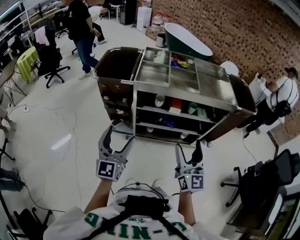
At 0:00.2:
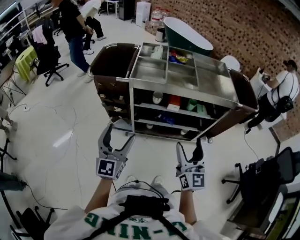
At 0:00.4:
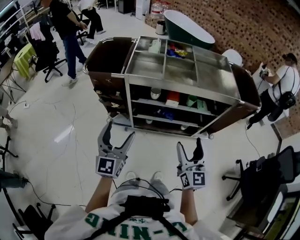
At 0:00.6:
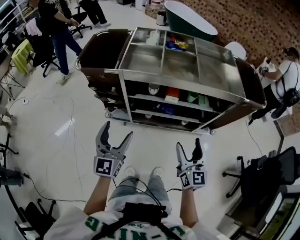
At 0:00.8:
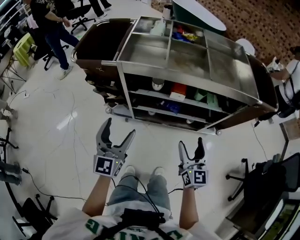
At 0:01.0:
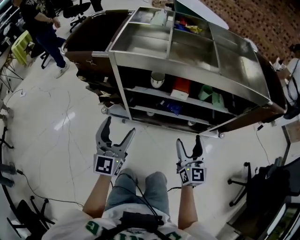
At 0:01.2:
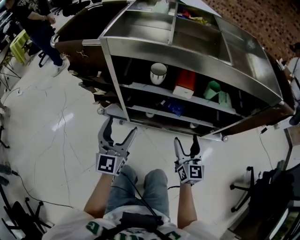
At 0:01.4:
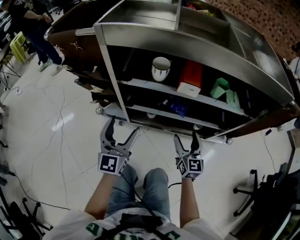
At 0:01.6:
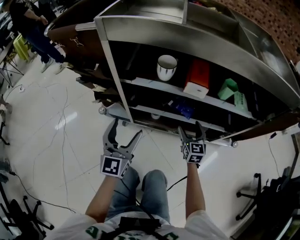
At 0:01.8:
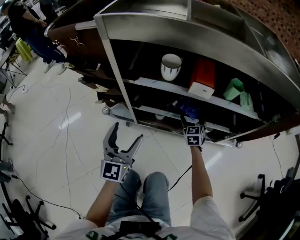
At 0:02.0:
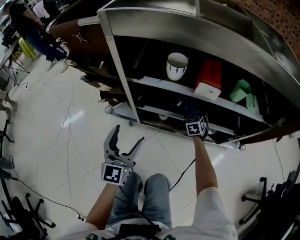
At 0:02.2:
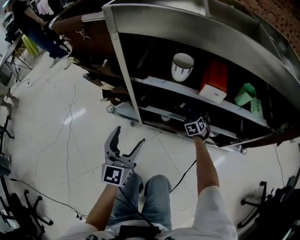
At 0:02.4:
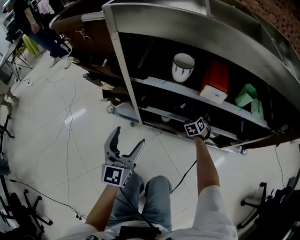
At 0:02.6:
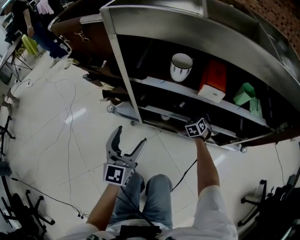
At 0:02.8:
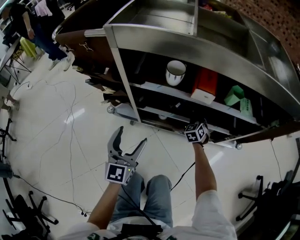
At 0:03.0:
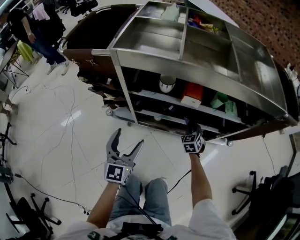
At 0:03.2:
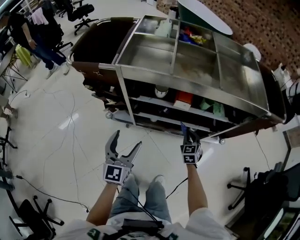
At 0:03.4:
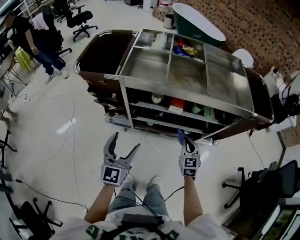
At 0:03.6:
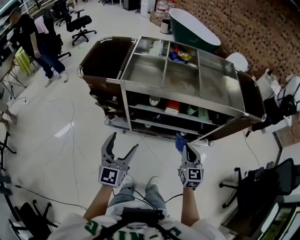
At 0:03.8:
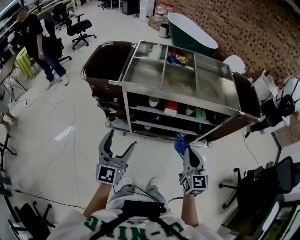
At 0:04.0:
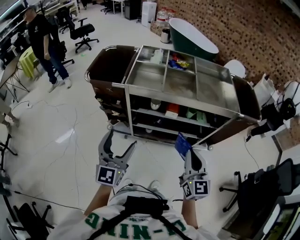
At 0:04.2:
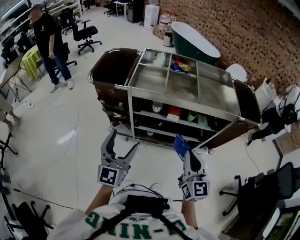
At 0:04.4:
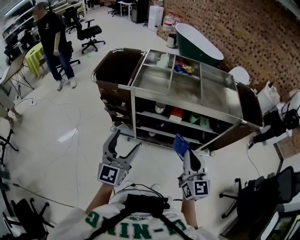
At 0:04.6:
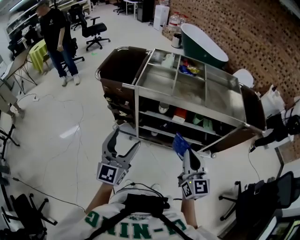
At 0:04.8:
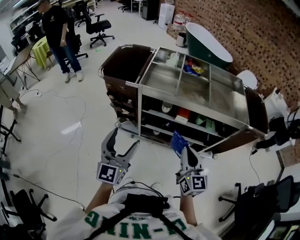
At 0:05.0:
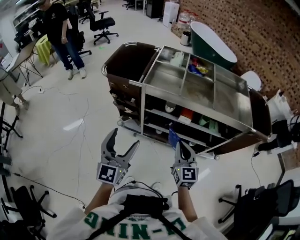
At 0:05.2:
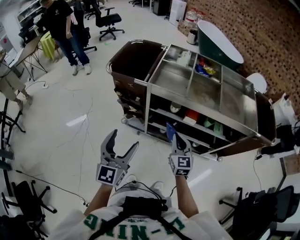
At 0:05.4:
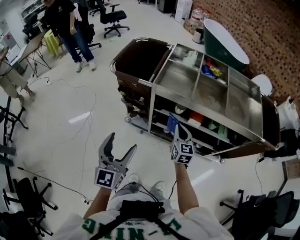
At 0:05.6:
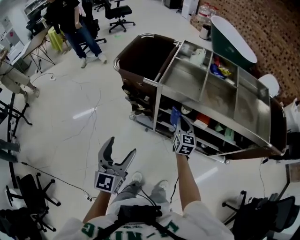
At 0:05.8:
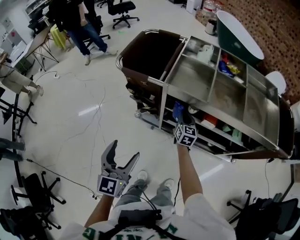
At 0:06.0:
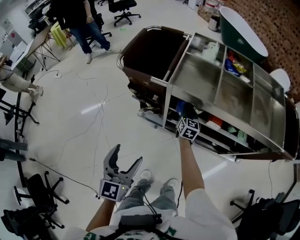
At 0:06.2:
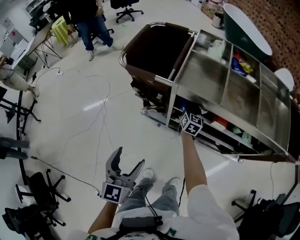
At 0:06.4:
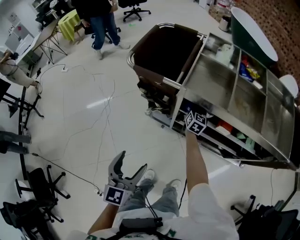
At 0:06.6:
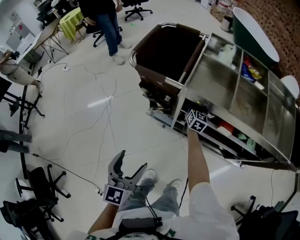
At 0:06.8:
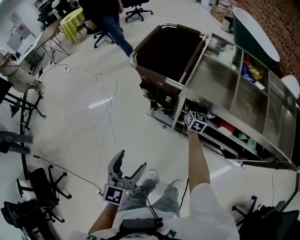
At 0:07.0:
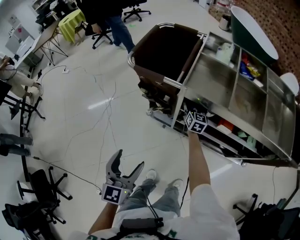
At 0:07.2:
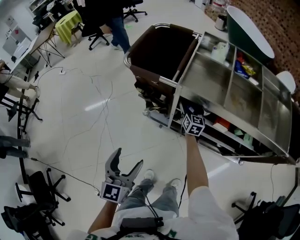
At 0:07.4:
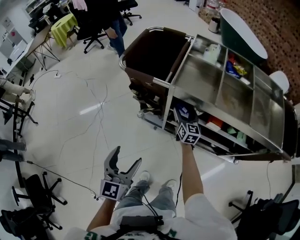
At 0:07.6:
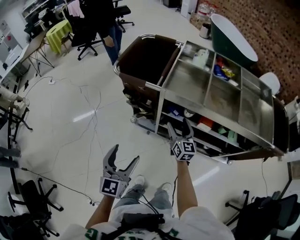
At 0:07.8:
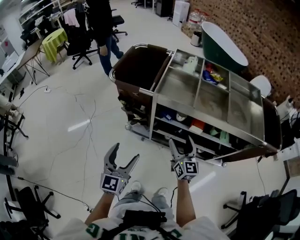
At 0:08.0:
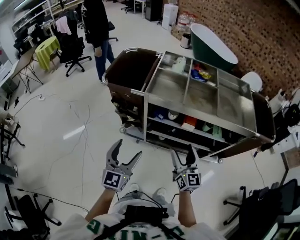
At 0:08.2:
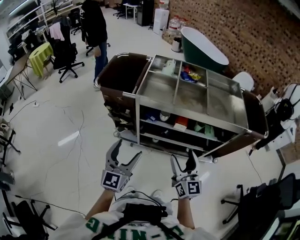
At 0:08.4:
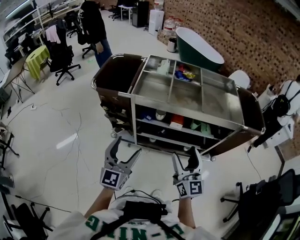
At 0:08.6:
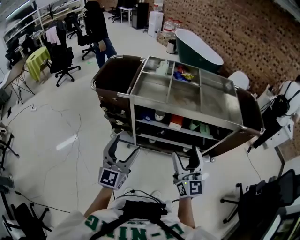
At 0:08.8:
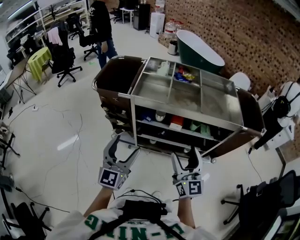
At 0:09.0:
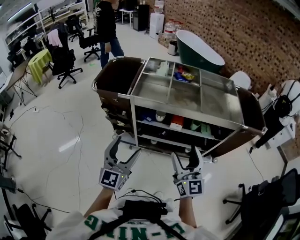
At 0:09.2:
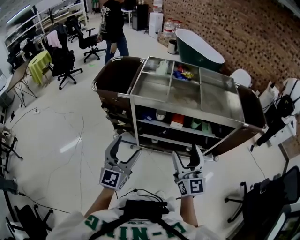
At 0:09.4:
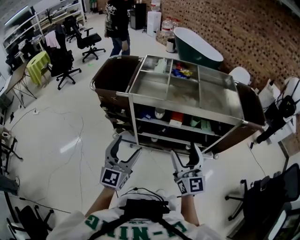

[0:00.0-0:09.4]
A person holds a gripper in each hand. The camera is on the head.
0:00.0 to 0:01.6: Both grippers move downward and forward, roughly 50 cm. The right gripper turns by roughly 30 degrees.
0:01.6 to 0:03.2: The grippers both shift upward by about 15 cm. The right gripper changes its angle by roughly 20 degrees, and closes its fingers.
0:03.2 to 0:04.8: The left gripper moves upward and backward, some 20 cm; the right gripper heads upward and backward, covering some 40 cm, and tips its fingers upward by approximately 30 degrees.
0:04.8 to 0:06.2: The left gripper moves downward and to the left, approximately 10 cm, and turns by about 20 degrees. Meanwhile the right gripper moves forward and downward, some 50 cm.
0:06.2 to 0:07.8: The right gripper is displaced backward and upward by about 25 cm, and opens up.
0:07.8 to 0:09.4: The right gripper travels upward, backward and to the right by roughly 20 cm. Meanwhile the left gripper is displaced to the right and upward by approximately 15 cm.

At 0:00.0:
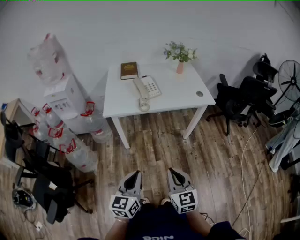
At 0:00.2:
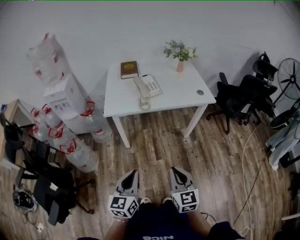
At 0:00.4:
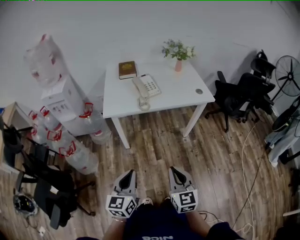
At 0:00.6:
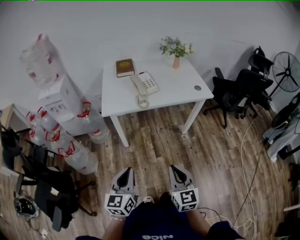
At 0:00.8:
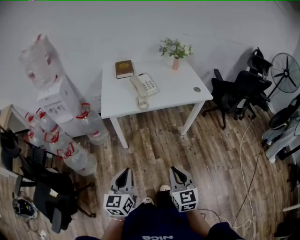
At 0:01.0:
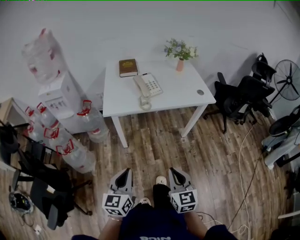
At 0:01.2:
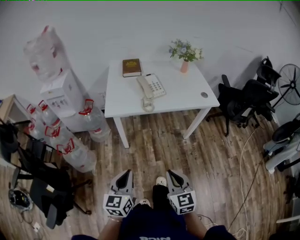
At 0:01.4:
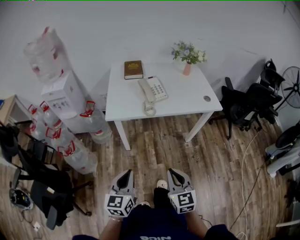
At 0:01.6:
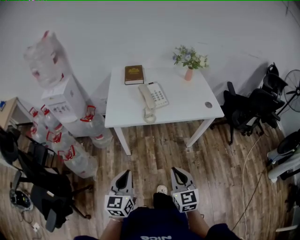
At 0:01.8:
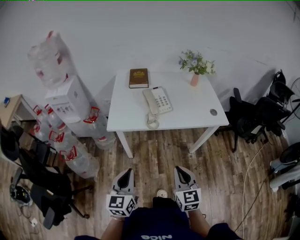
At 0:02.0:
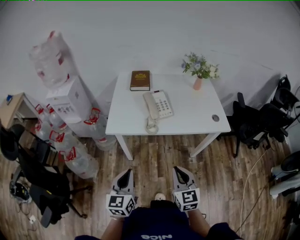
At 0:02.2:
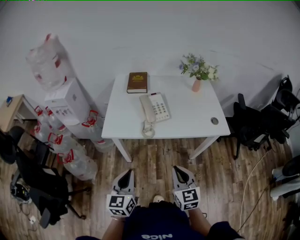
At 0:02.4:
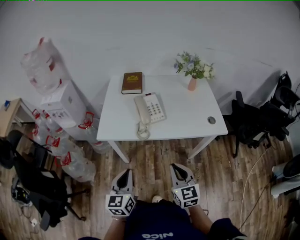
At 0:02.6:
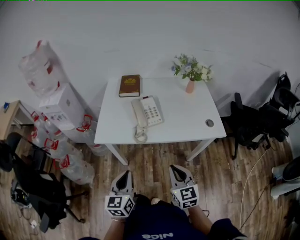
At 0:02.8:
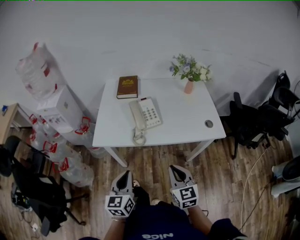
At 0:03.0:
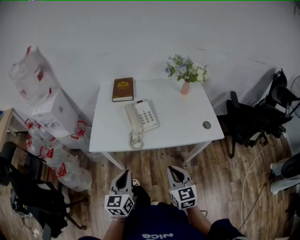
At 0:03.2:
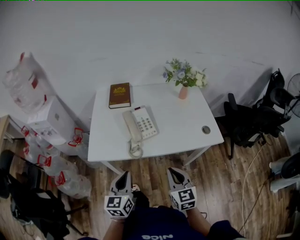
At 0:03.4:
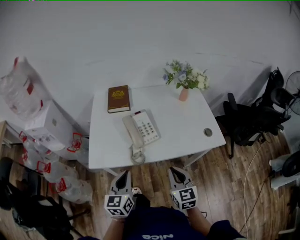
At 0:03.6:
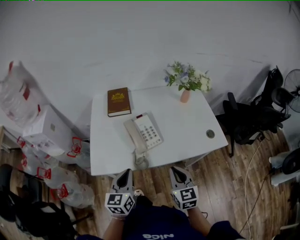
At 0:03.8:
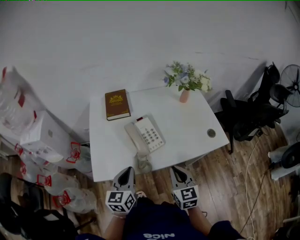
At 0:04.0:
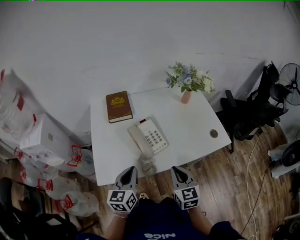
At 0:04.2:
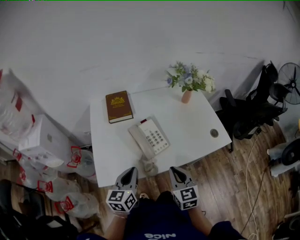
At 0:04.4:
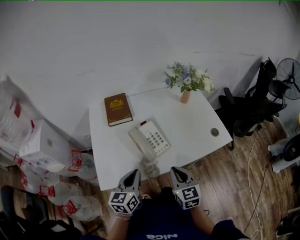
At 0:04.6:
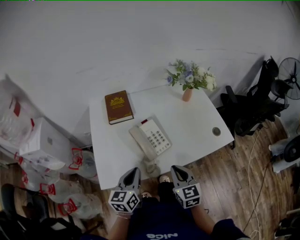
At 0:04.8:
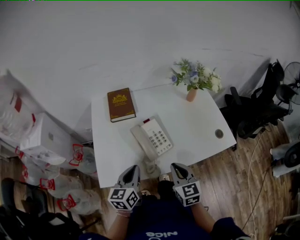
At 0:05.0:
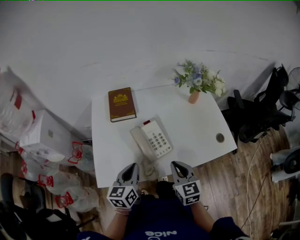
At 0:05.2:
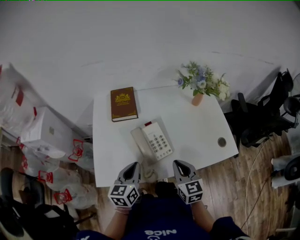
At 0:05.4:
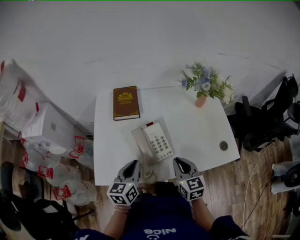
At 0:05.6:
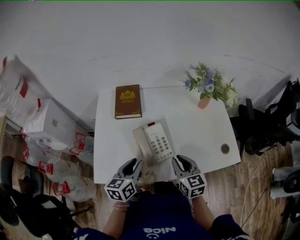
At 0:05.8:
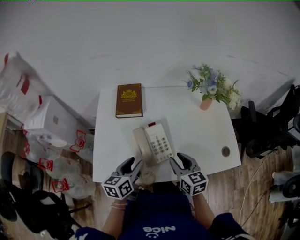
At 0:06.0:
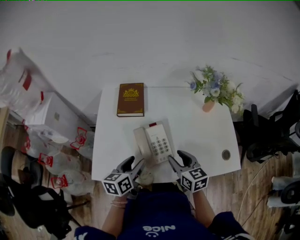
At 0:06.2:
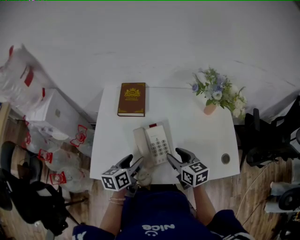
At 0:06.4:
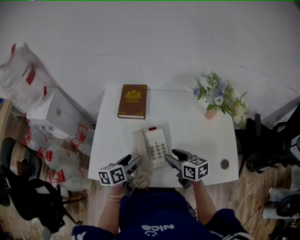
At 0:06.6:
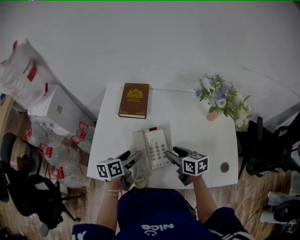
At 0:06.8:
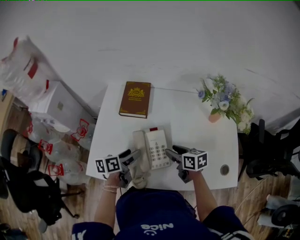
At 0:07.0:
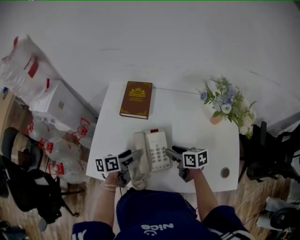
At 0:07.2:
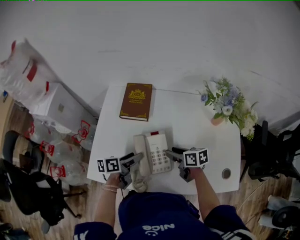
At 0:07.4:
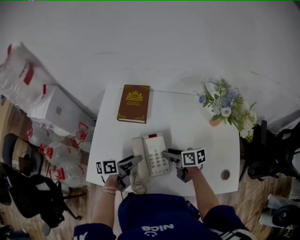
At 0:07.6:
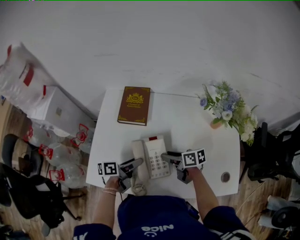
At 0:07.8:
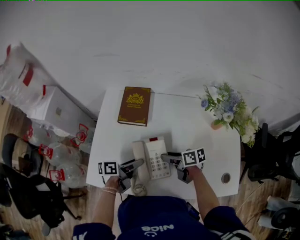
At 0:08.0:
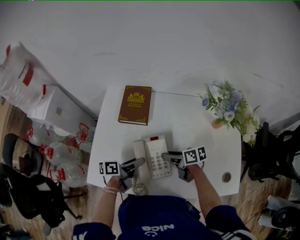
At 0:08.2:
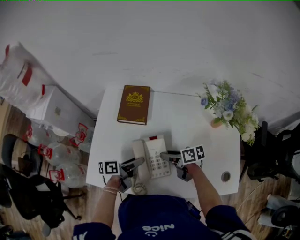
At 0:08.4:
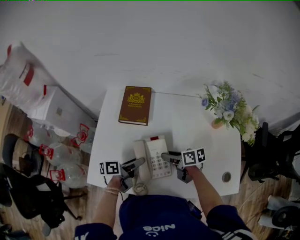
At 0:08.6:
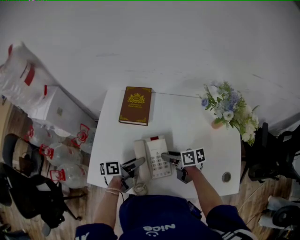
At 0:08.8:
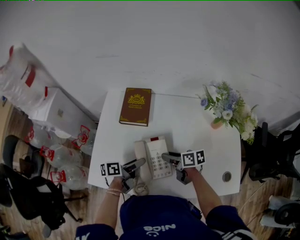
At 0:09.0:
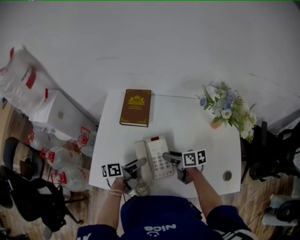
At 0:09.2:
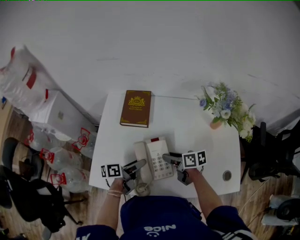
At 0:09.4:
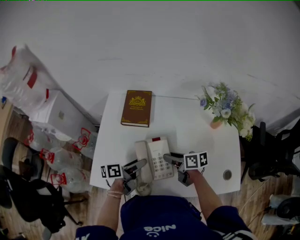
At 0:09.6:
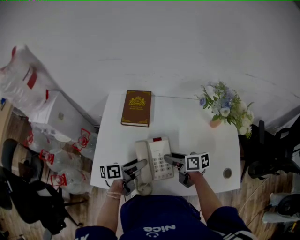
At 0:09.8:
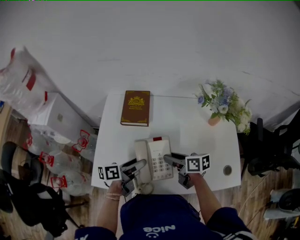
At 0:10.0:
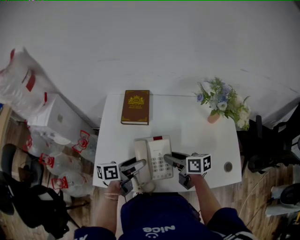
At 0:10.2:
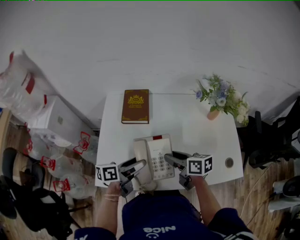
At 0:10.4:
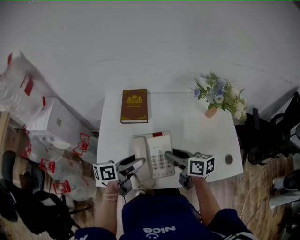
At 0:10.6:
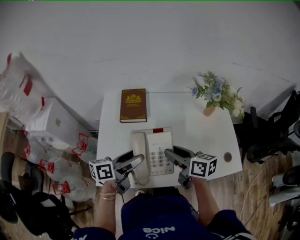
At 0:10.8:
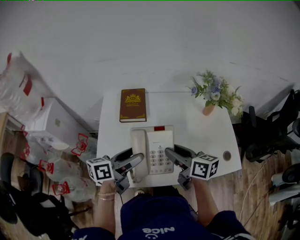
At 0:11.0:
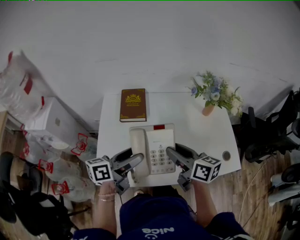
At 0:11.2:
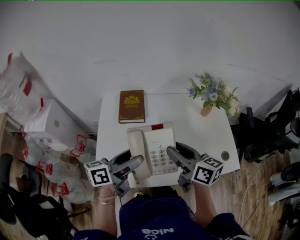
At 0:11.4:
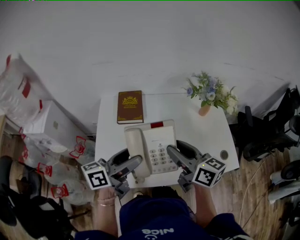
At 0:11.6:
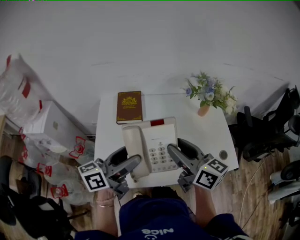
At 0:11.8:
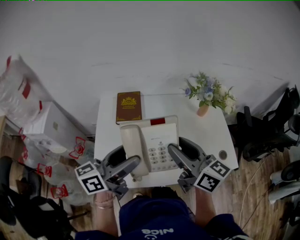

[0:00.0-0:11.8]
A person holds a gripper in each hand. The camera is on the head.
0:00.0 to 0:01.4: The left gripper moves forward and to the left, approximately 10 cm. Meanwhile the right gripper shifts roughly 5 cm forward.
0:01.4 to 0:03.0: Both grippers travel together forward and to the right, approximately 25 cm.
0:03.0 to 0:04.4: The right gripper travels forward and to the left by approximately 15 cm. Meanwhile the left gripper travels forward by some 20 cm, and rotates about 20 degrees.
0:04.4 to 0:06.0: The left gripper shifts roughly 10 cm forward, and opens its fingers. Meanwhile the right gripper moves forward, some 15 cm, rotates roughly 30 degrees, and opens.
0:06.0 to 0:07.4: Both grippers travel together forward and downward, approximately 10 cm. The left gripper swivels roughly 30 degrees. The right gripper changes its angle by roughly 40 degrees.
0:07.4 to 0:08.8: There are only small adjustments of the grippers.
0:08.8 to 0:10.4: The left gripper is displaced upward by roughly 10 cm. Meanwhile the right gripper travels upward and backward by roughly 15 cm, and rotates roughly 20 degrees.
0:10.4 to 0:11.8: Both grippers move upward, some 20 cm. The right gripper swivels roughly 30 degrees. The left gripper rotates some 30 degrees.

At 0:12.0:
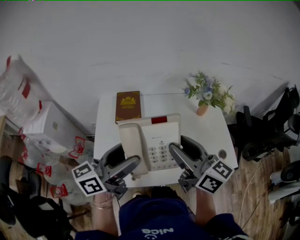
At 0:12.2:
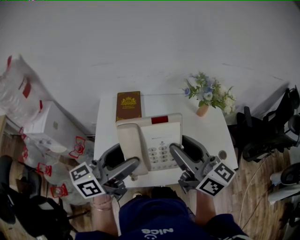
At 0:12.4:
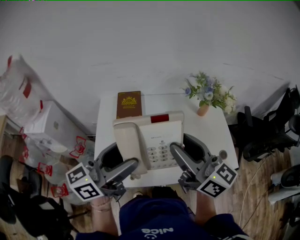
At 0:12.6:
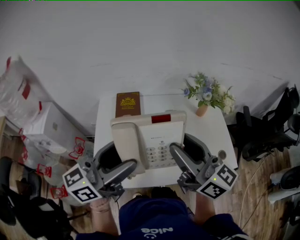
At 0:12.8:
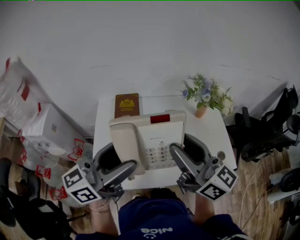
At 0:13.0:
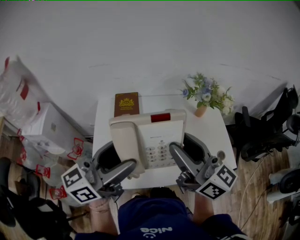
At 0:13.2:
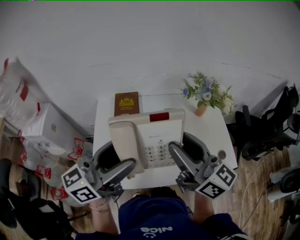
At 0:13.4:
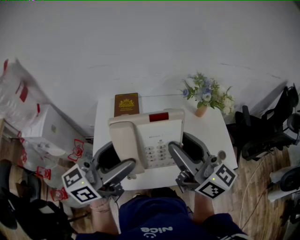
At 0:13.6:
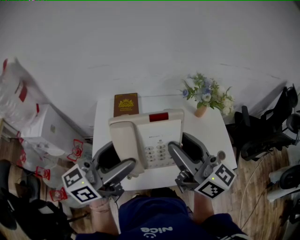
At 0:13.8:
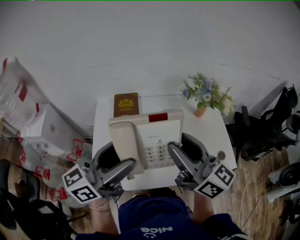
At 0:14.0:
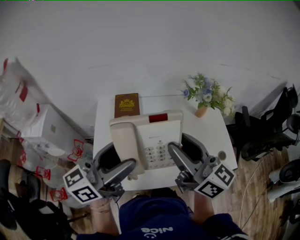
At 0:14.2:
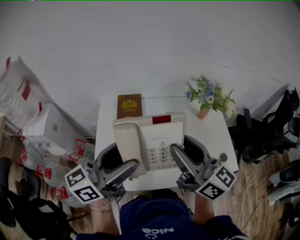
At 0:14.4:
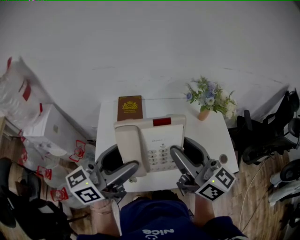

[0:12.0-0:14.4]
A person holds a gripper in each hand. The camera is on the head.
0:12.0 to 0:13.2: Both grippers move upward, some 5 cm.
0:13.2 to 0:14.4: The grippers move only a little.
